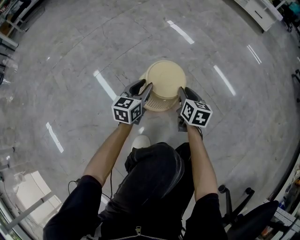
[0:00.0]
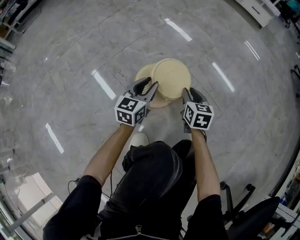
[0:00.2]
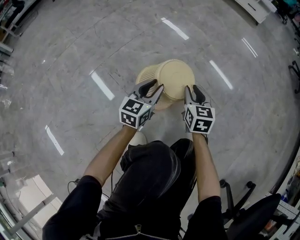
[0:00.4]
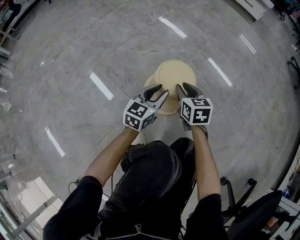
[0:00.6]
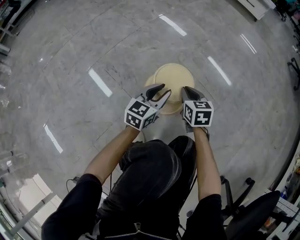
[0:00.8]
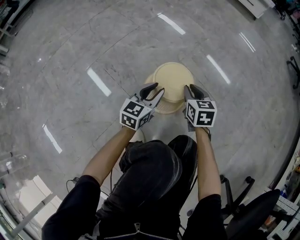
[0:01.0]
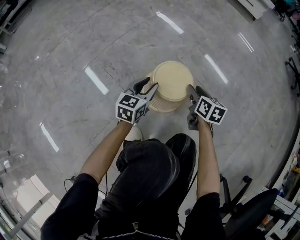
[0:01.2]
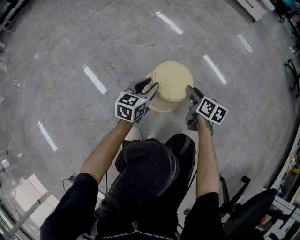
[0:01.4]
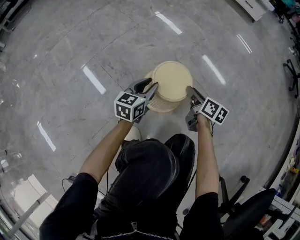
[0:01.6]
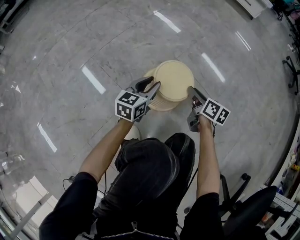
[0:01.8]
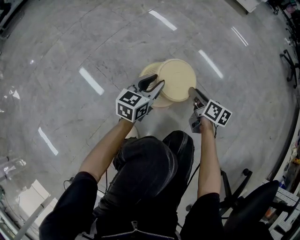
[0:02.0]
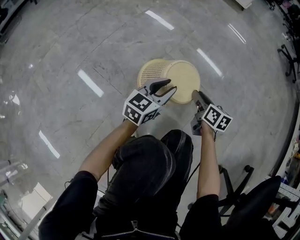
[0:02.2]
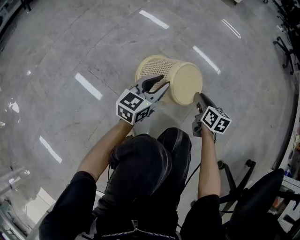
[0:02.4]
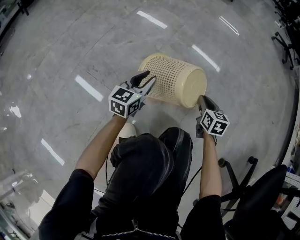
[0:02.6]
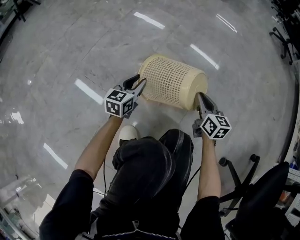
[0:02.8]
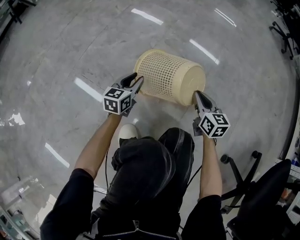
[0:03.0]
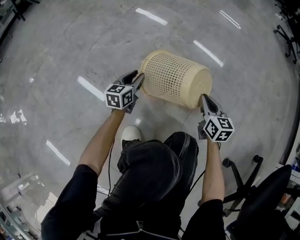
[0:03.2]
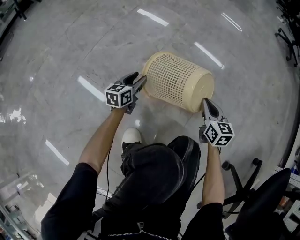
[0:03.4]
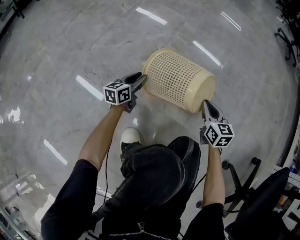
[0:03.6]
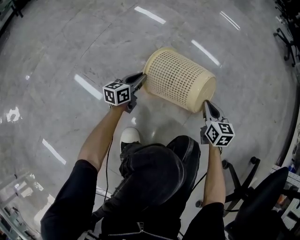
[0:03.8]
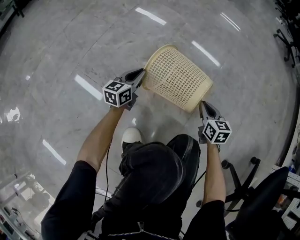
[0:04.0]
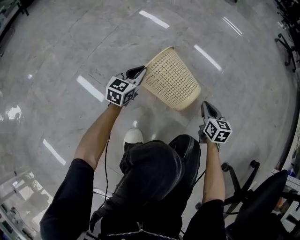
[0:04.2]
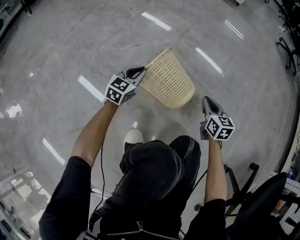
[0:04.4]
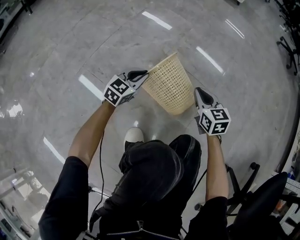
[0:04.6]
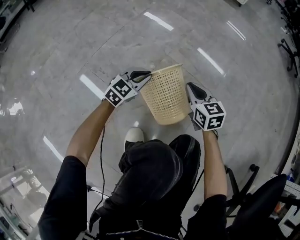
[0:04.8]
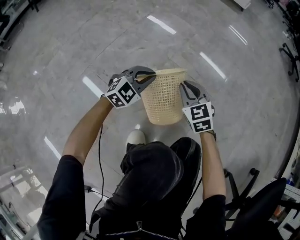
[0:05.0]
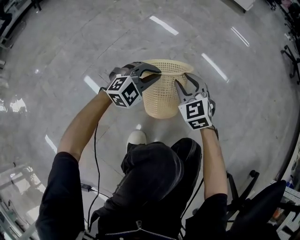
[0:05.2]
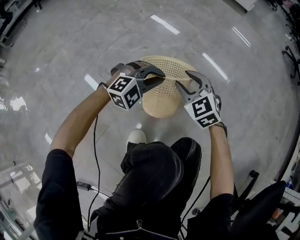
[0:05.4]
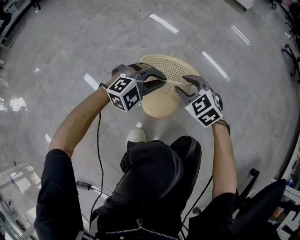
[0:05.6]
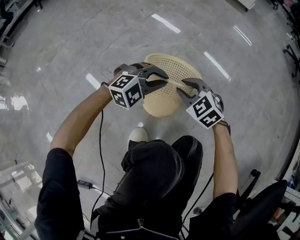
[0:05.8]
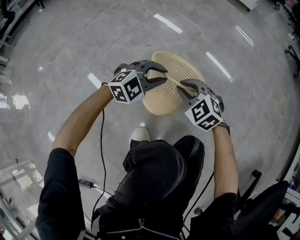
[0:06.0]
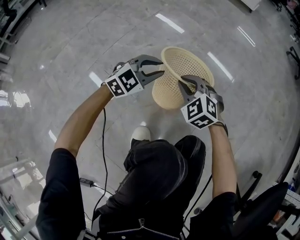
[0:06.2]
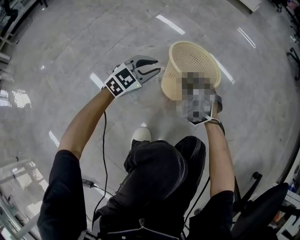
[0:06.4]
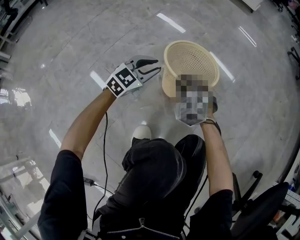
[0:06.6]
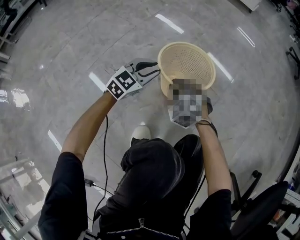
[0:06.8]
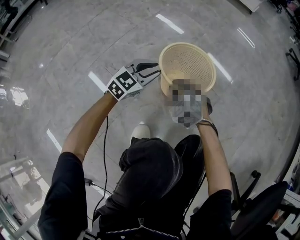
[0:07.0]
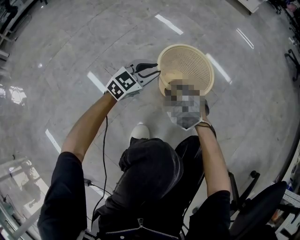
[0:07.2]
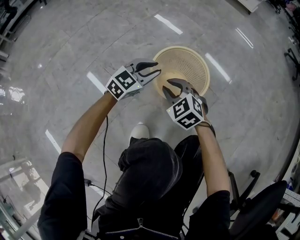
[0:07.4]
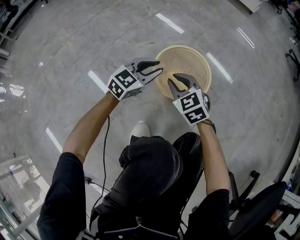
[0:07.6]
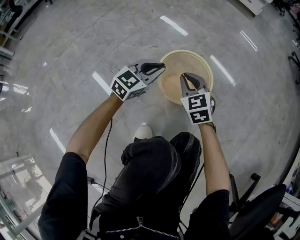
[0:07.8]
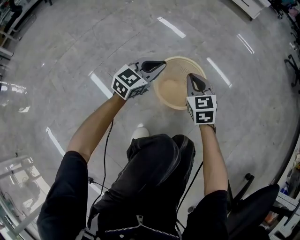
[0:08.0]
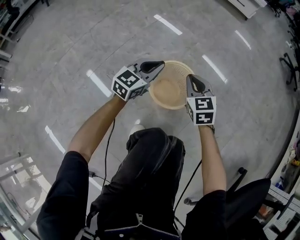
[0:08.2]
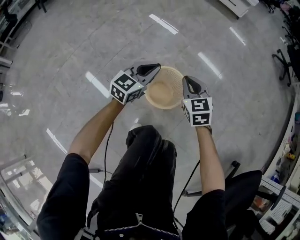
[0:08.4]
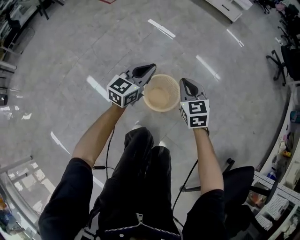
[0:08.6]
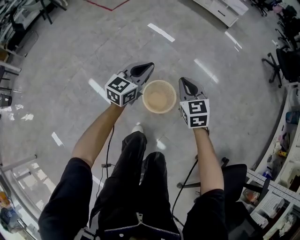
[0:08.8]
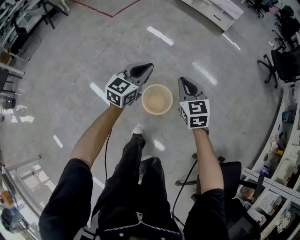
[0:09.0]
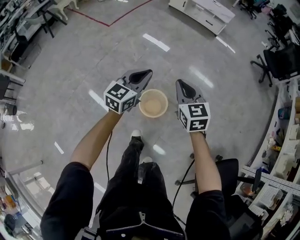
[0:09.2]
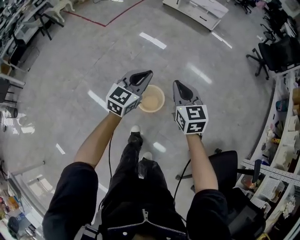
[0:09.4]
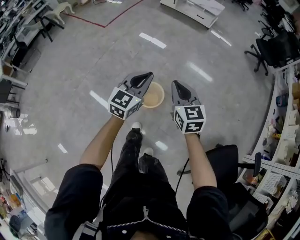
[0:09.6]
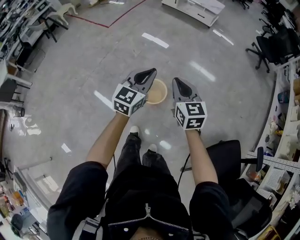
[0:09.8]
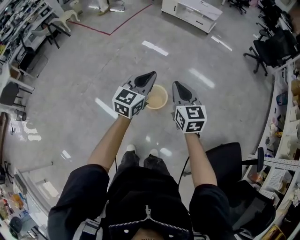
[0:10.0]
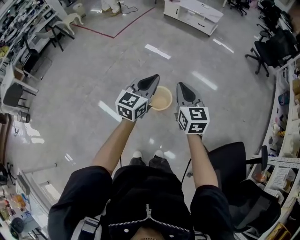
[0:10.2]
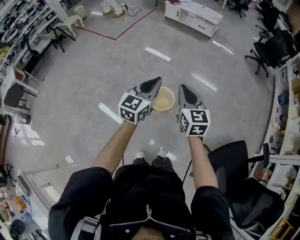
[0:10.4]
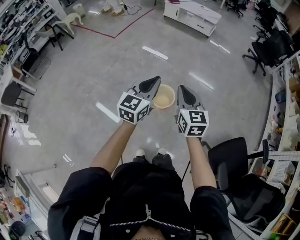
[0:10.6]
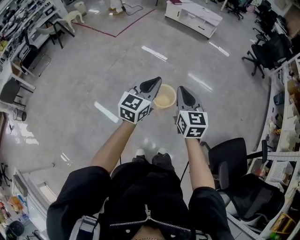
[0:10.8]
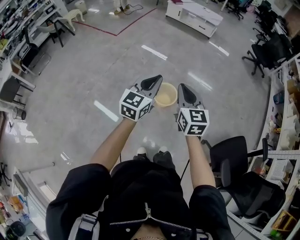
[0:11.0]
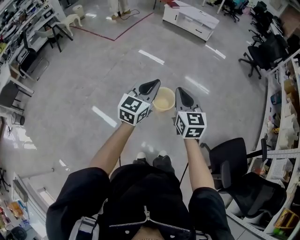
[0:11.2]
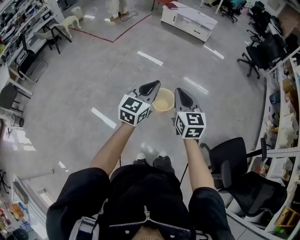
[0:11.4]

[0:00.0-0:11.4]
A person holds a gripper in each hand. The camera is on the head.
0:00.0 to 0:01.4: The grippers both shift to the right by about 10 cm.
0:01.4 to 0:02.8: The right gripper travels to the right and backward by approximately 15 cm, swivels roughly 20 degrees, and closes its fingers, while the left gripper heads to the right, covering about 5 cm.
0:02.8 to 0:04.2: The left gripper heads forward, covering some 5 cm, reaches approximately 10 cm downward, then returns, and closes up; the right gripper goes roughly 5 cm downward.
0:04.2 to 0:05.6: The right gripper is displaced to the left and upward by about 20 cm, rolls counterclockwise, seen from behind, by approximately 50 degrees, and opens its fingers. Meanwhile the left gripper shifts approximately 15 cm upward, backward and to the right, and rotates around the line of its fingers by some 60 degrees, clockwise from behind.
0:05.6 to 0:07.2: The left gripper heads to the left, covering some 5 cm, and rotates approximately 40 degrees. Meanwhile the right gripper moves to the left and backward, some 10 cm, and closes.
0:07.2 to 0:08.6: The two grippers go roughly 40 cm upward. The right gripper changes its angle by about 40 degrees; the left gripper changes its angle by about 30 degrees.
0:08.6 to 0:10.0: Both grippers move upward and backward, about 40 cm. The right gripper turns by roughly 20 degrees.
0:10.0 to 0:11.4: The right gripper goes roughly 20 cm to the left and backward; the left gripper moves backward and to the left, about 20 cm.

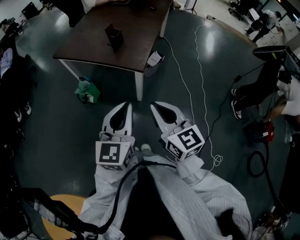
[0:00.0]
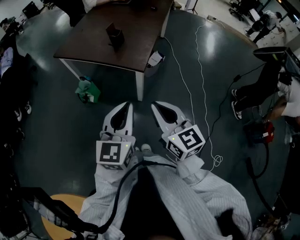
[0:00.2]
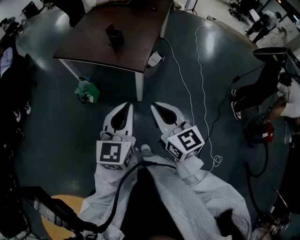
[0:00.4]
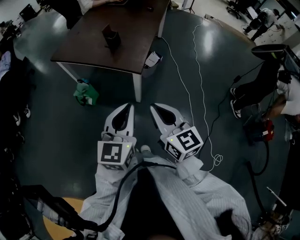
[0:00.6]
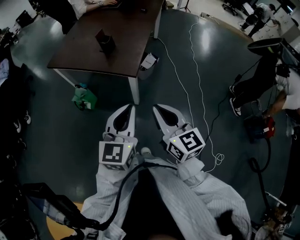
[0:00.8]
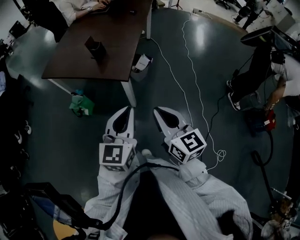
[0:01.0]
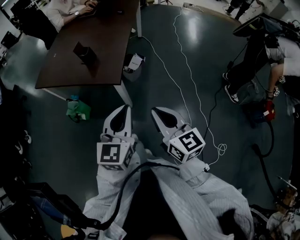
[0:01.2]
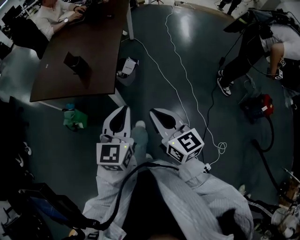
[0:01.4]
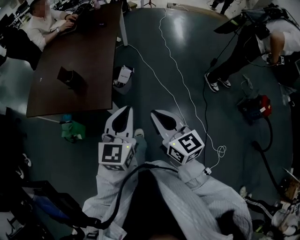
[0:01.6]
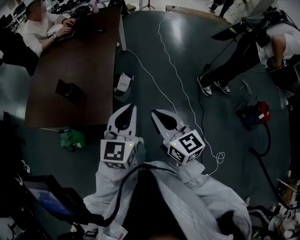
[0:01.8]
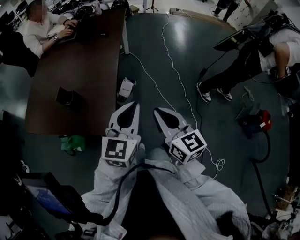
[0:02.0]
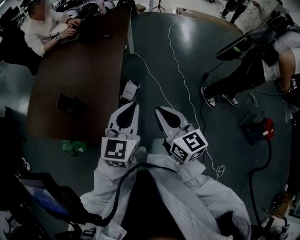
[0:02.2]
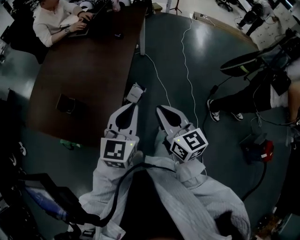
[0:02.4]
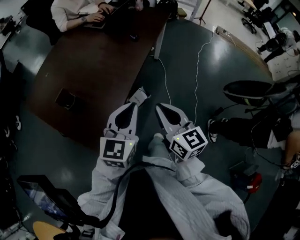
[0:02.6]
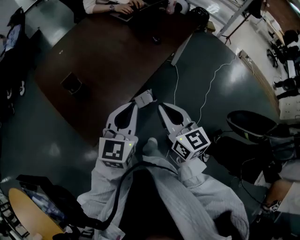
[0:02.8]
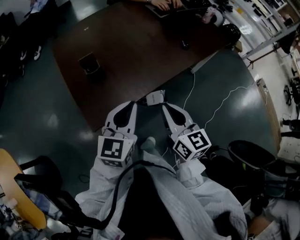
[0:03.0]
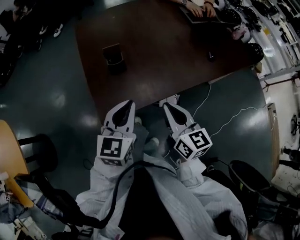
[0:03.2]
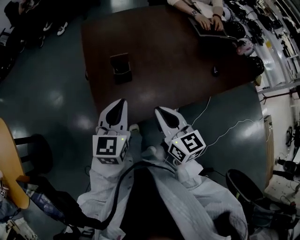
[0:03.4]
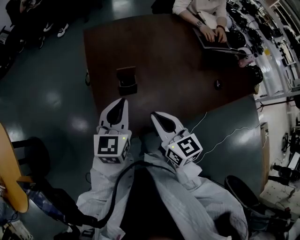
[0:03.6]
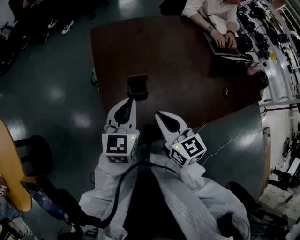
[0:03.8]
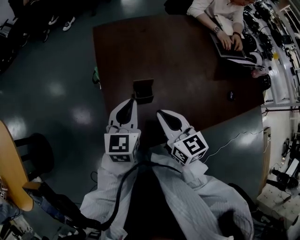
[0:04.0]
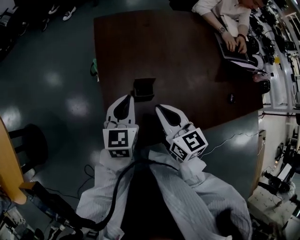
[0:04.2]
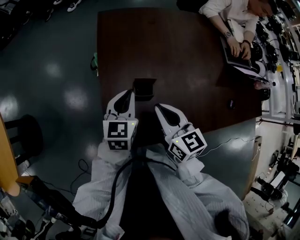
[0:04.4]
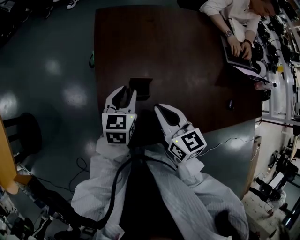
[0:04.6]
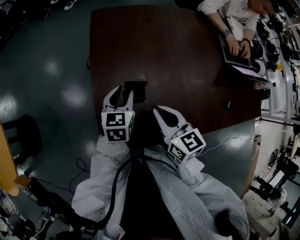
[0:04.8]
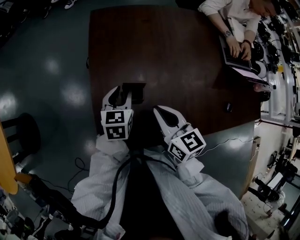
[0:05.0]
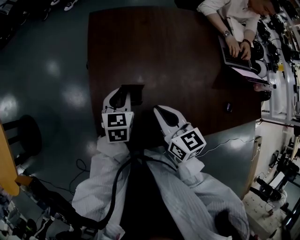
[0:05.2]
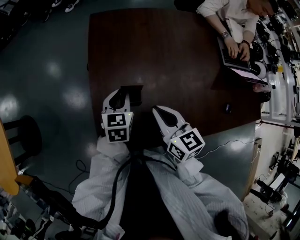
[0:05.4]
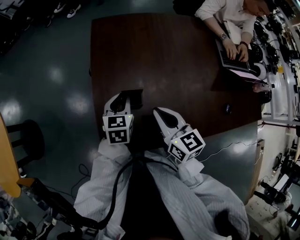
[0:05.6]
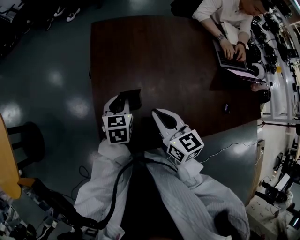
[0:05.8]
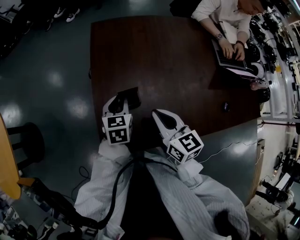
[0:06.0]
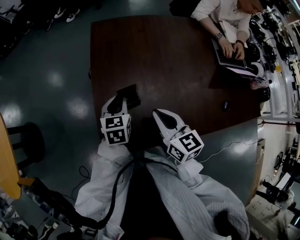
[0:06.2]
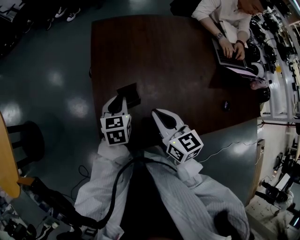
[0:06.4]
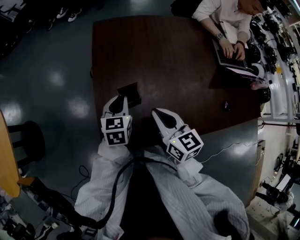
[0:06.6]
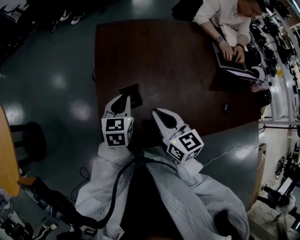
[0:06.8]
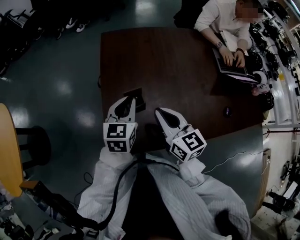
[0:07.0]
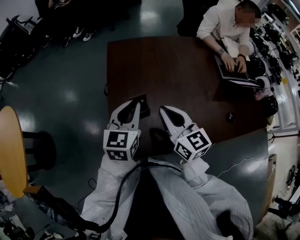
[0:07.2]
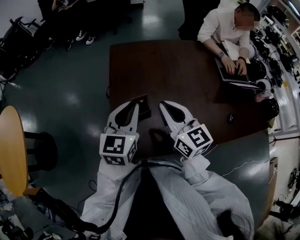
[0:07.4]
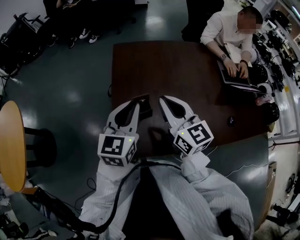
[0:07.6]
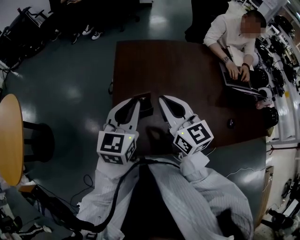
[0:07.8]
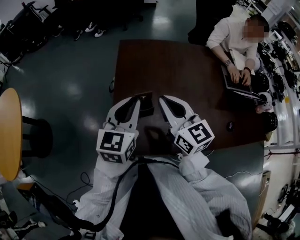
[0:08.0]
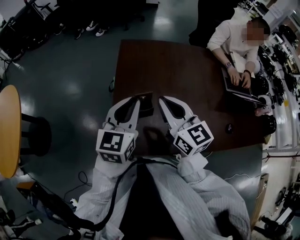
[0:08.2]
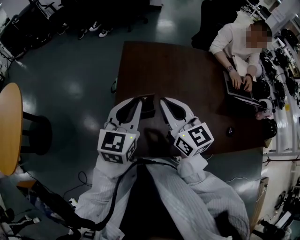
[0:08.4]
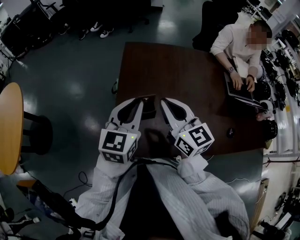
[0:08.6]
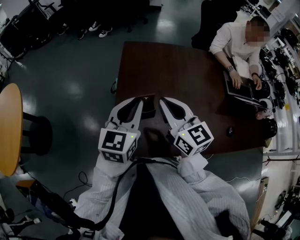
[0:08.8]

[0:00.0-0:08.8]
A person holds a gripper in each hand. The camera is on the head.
0:00.0 to 0:01.4: Both grippers travel together to the right and forward, approximately 20 cm.
0:01.4 to 0:03.0: Both grippers are carried roughly 50 cm. The right gripper turns by roughly 50 degrees, while the left gripper changes its angle by about 50 degrees.
0:03.0 to 0:04.4: The left gripper moves about 35 cm, and swivels some 30 degrees, while the right gripper ends up approximately 35 cm from where it was, and rotates some 30 degrees.
0:05.8 to 0:07.4: The left gripper heads upward, covering about 20 cm, and changes its angle by about 30 degrees, while the right gripper moves upward, roughly 10 cm.
0:07.4 to 0:08.8: There are only small adjustments of the grippers.

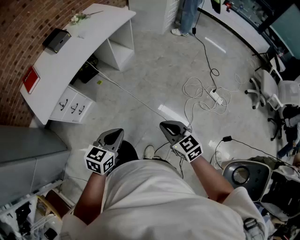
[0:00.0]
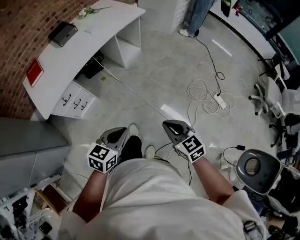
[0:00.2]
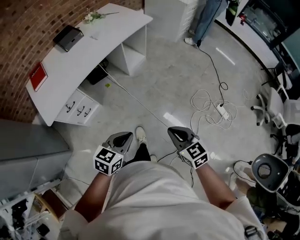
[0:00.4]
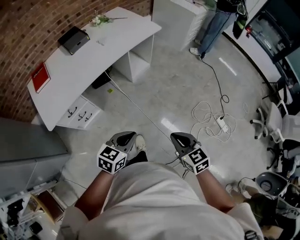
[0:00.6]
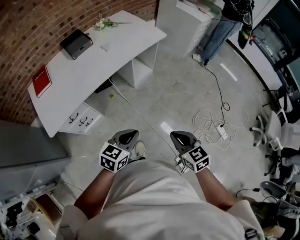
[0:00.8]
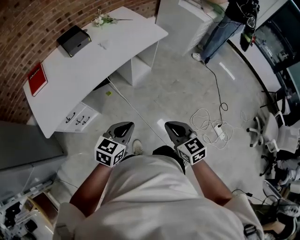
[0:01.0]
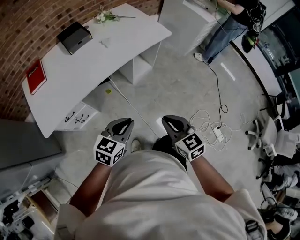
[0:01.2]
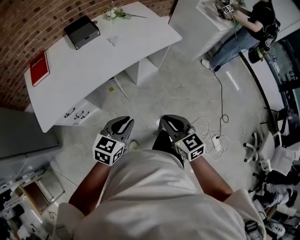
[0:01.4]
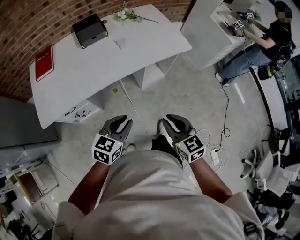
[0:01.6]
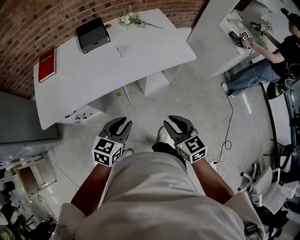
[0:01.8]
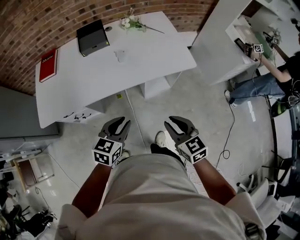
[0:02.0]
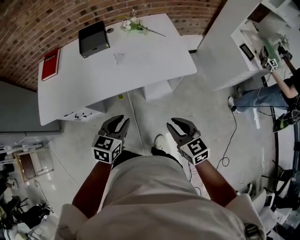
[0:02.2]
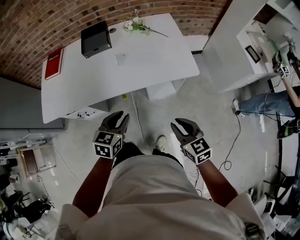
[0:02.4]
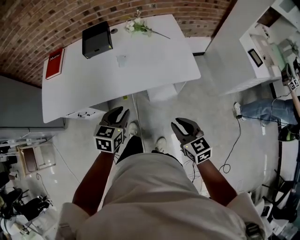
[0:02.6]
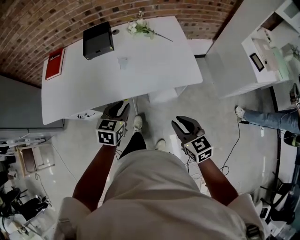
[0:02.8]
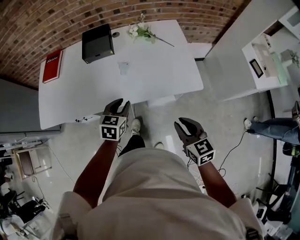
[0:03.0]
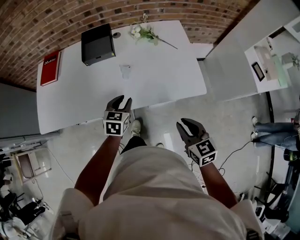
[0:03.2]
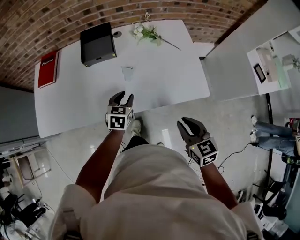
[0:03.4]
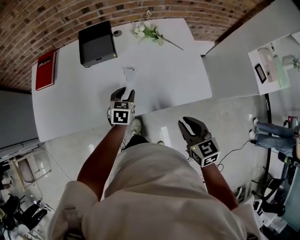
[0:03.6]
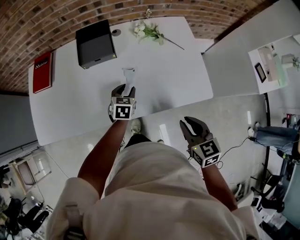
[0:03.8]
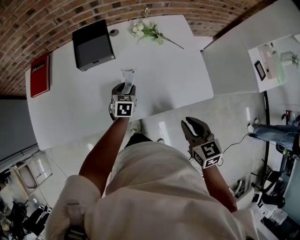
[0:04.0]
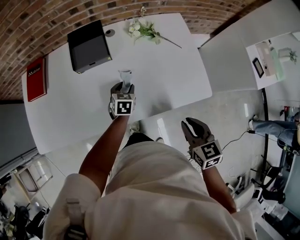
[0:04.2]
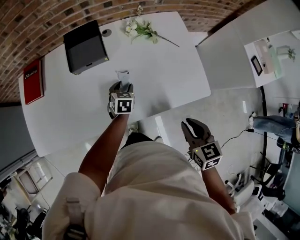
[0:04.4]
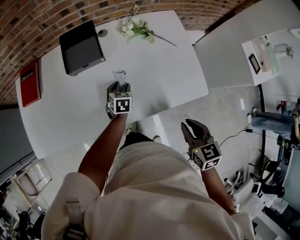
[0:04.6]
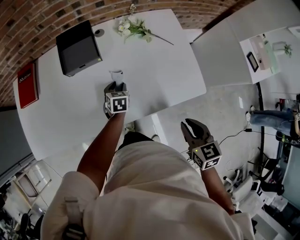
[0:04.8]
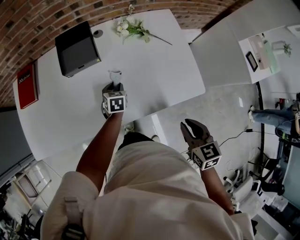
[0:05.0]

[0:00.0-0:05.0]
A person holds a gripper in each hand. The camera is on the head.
0:00.0 to 0:01.6: Both grippers move forward, roughly 40 cm. The left gripper swivels some 20 degrees.
0:01.6 to 0:03.4: The right gripper travels forward and to the right by roughly 35 cm. Meanwhile the left gripper shifts approximately 35 cm forward, and turns by roughly 30 degrees.
0:03.4 to 0:05.0: The left gripper shifts roughly 15 cm forward and downward.
